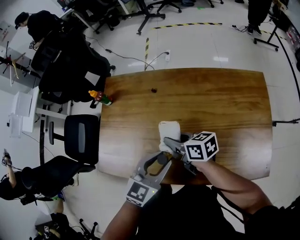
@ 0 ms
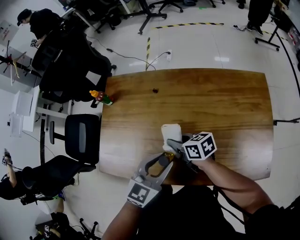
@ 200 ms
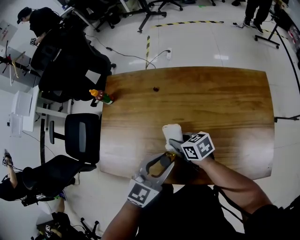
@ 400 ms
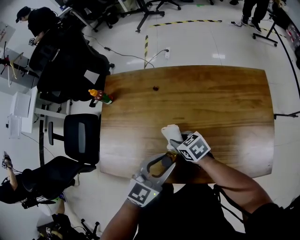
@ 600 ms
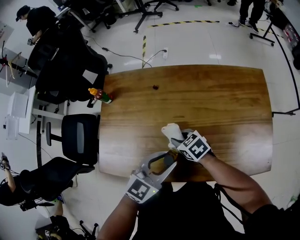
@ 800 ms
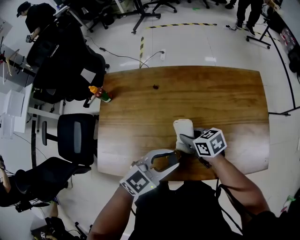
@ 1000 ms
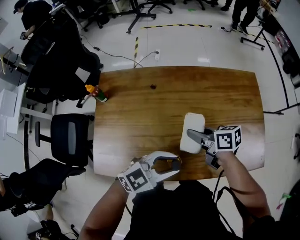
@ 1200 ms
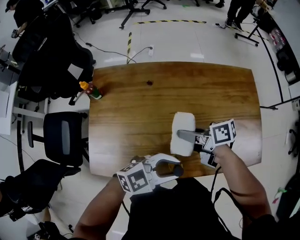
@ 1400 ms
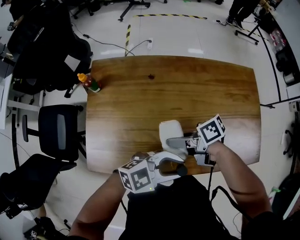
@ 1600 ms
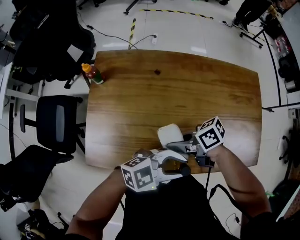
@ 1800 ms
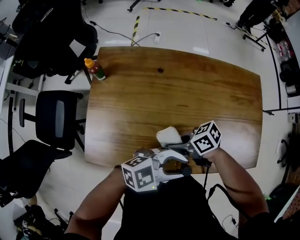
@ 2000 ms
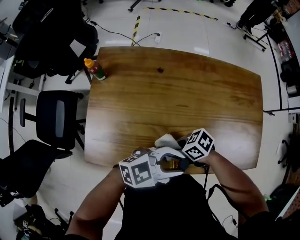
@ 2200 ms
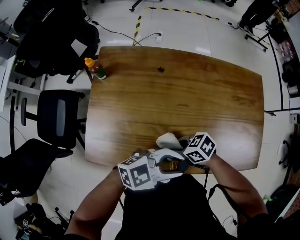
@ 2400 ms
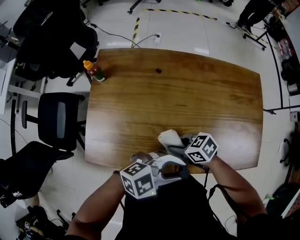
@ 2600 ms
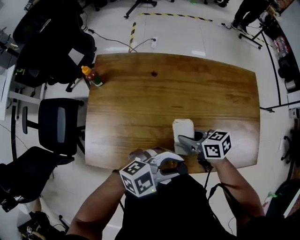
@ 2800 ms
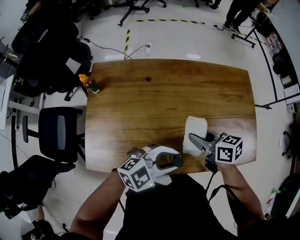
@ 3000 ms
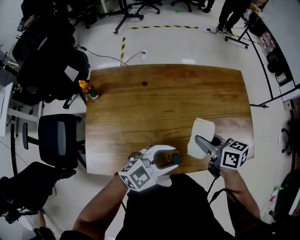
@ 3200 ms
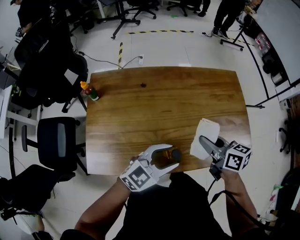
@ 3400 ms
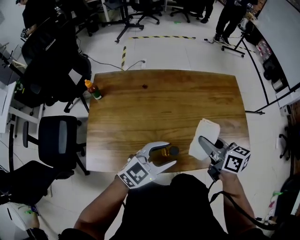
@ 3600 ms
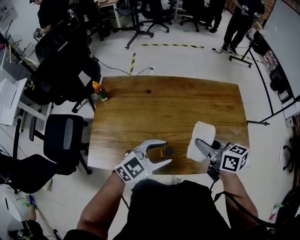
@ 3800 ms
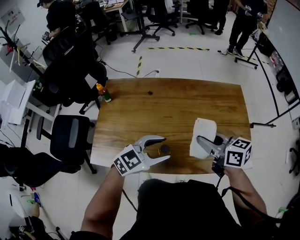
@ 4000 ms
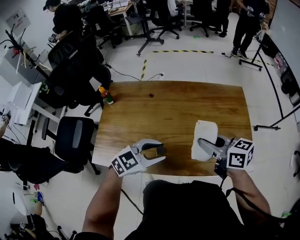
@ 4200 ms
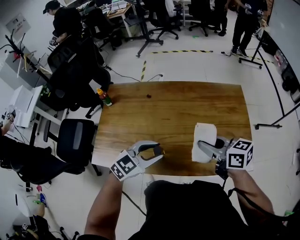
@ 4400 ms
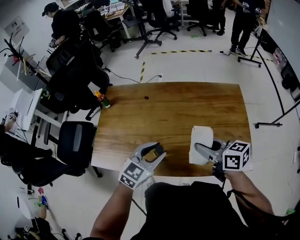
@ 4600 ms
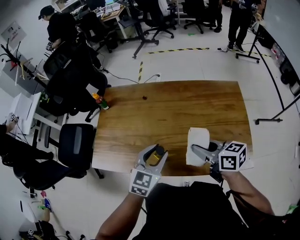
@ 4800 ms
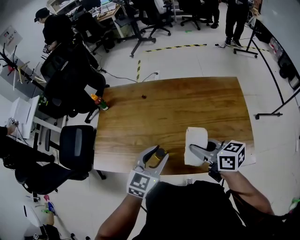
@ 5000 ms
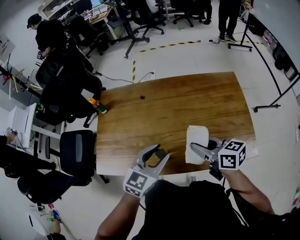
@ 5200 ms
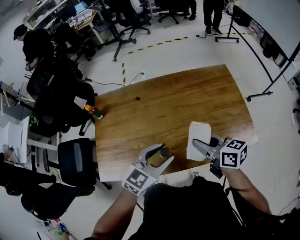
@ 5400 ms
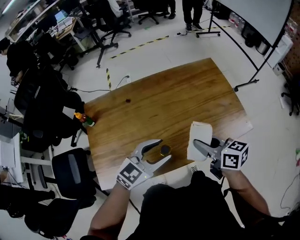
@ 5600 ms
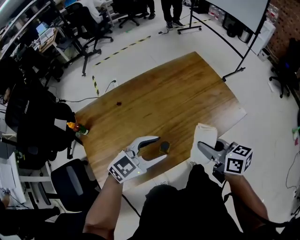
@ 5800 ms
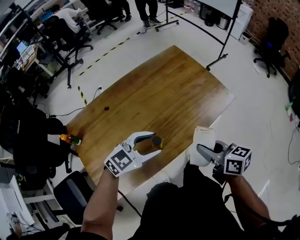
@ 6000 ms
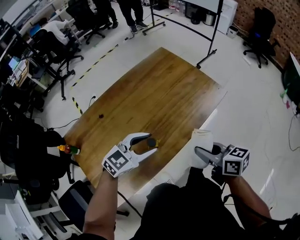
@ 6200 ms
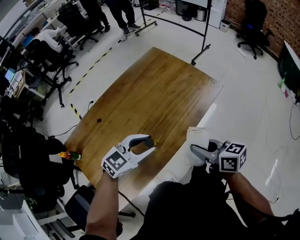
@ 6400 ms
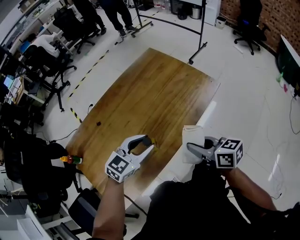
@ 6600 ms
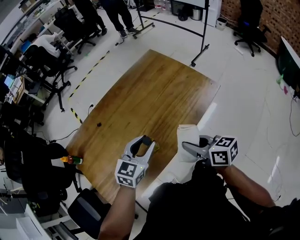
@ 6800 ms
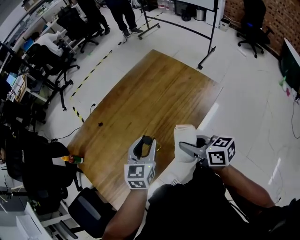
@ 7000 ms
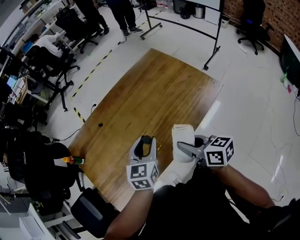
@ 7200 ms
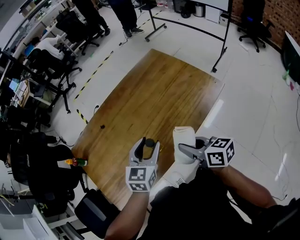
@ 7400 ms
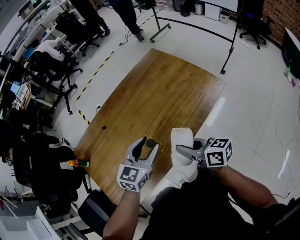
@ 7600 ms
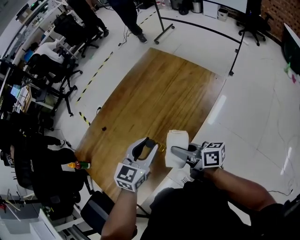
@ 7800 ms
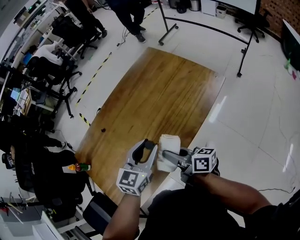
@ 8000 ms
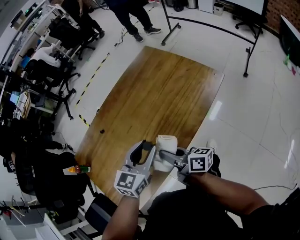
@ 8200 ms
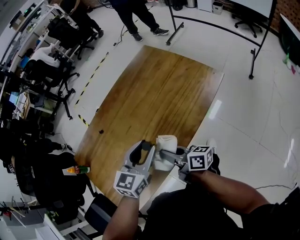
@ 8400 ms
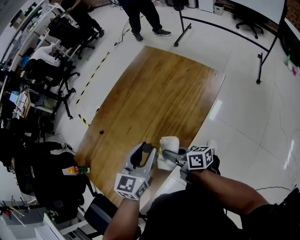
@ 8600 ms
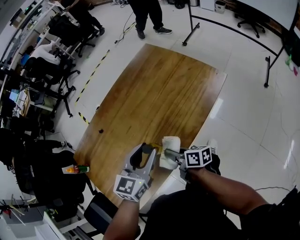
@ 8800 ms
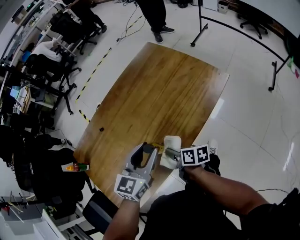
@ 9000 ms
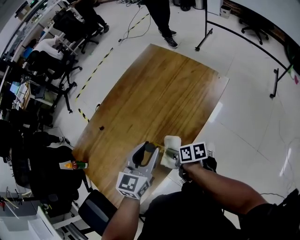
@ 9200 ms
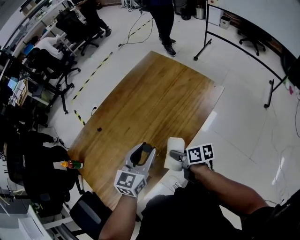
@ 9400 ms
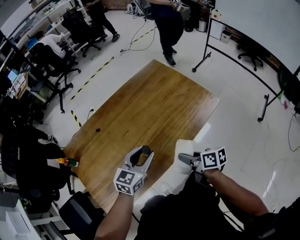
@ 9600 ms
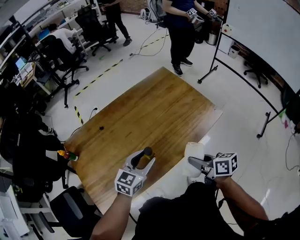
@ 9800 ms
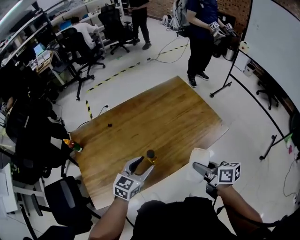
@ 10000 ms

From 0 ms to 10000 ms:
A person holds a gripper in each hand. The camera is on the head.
From 0 ms to 1400 ms: The right gripper moves roughly 10 cm downward and comes back, and rotates roughly 20 degrees; the left gripper changes place by some 10 cm, and turns by roughly 50 degrees.
From 1400 ms to 2800 ms: The right gripper is displaced downward by roughly 5 cm, and swivels roughly 30 degrees.
From 2800 ms to 4200 ms: The left gripper changes its angle by about 20 degrees. The right gripper heads upward, covering about 15 cm, and rotates roughly 20 degrees.
From 4200 ms to 5800 ms: The right gripper changes place by roughly 10 cm, and rotates roughly 40 degrees; the left gripper changes its angle by about 30 degrees.
From 5800 ms to 7200 ms: The left gripper shifts by about 5 cm, and turns by about 40 degrees.
From 7200 ms to 8600 ms: The right gripper shifts some 15 cm downward and to the left, and swivels some 30 degrees; the left gripper turns by approximately 20 degrees.
From 8600 ms to 10000 ms: The right gripper shifts some 20 cm to the right and upward, and turns by about 20 degrees.

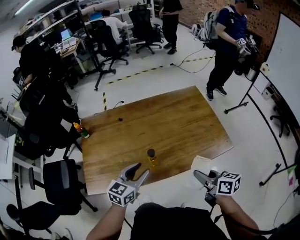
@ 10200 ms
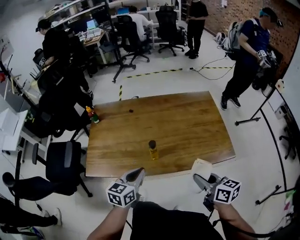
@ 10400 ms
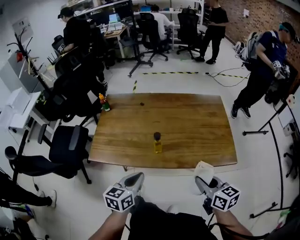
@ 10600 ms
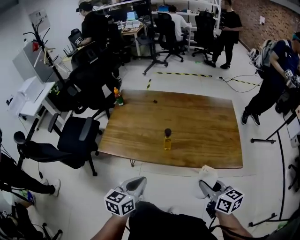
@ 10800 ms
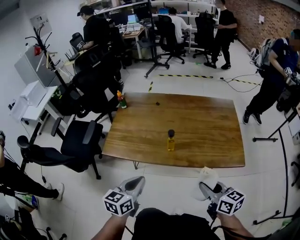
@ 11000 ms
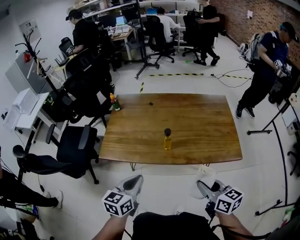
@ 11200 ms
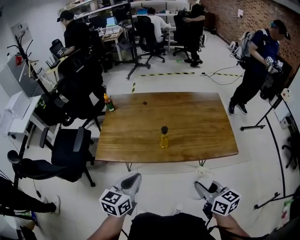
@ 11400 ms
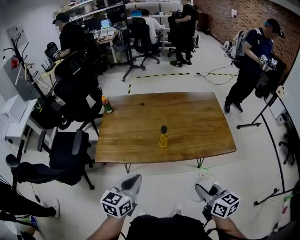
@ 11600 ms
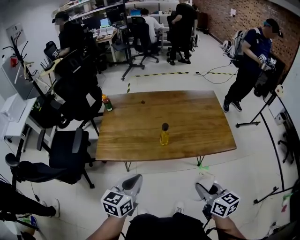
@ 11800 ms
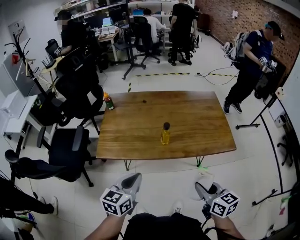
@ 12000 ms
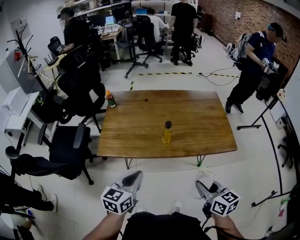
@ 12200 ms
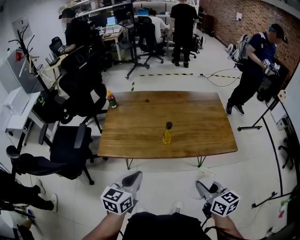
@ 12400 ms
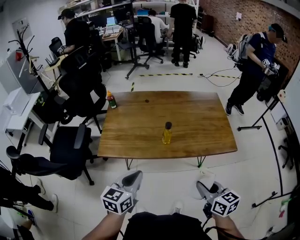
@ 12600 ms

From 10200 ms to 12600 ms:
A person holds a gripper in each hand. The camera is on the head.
From 10200 ms to 11400 ms: The right gripper heads backward and to the left, covering some 15 cm, and swivels roughly 20 degrees. The left gripper goes approximately 20 cm backward and to the left, turns by some 30 degrees, and closes.
From 11400 ms to 12600 ms: The grippers move only a little.

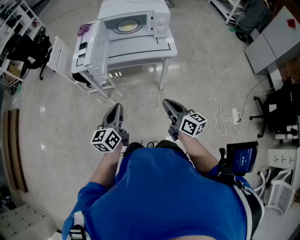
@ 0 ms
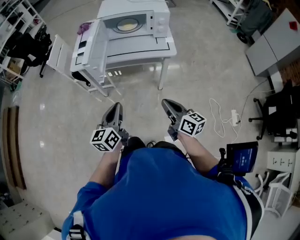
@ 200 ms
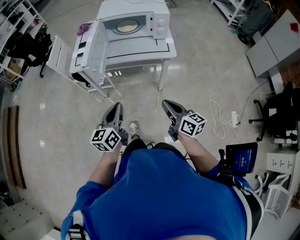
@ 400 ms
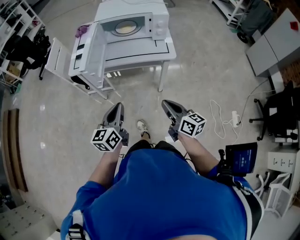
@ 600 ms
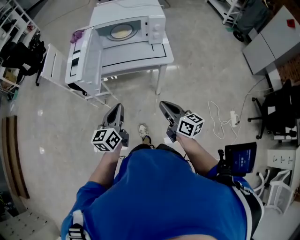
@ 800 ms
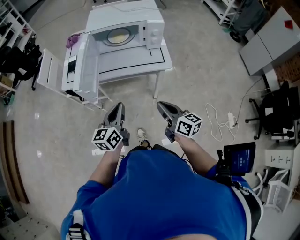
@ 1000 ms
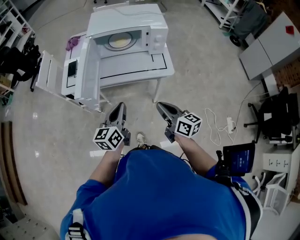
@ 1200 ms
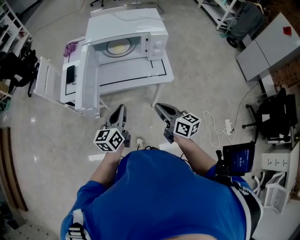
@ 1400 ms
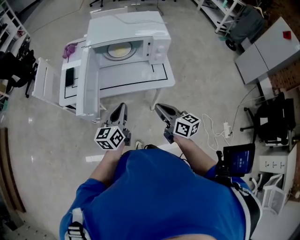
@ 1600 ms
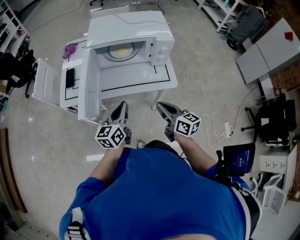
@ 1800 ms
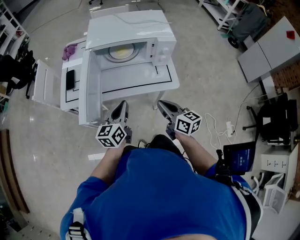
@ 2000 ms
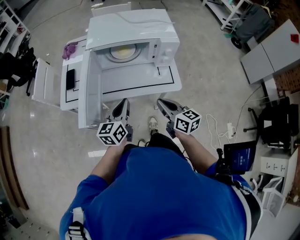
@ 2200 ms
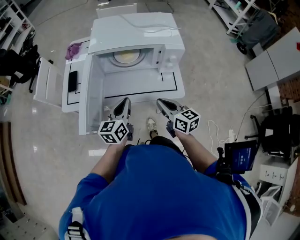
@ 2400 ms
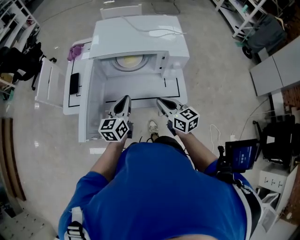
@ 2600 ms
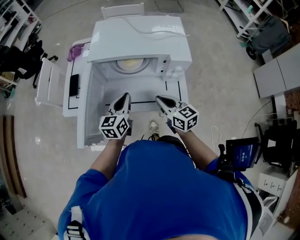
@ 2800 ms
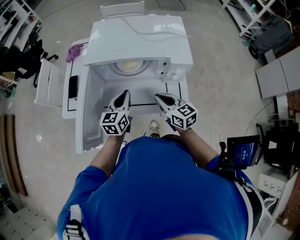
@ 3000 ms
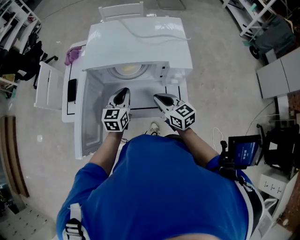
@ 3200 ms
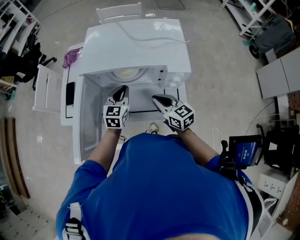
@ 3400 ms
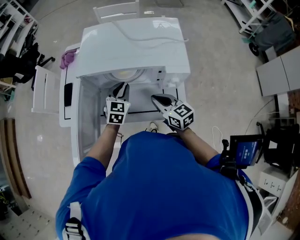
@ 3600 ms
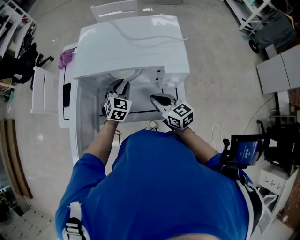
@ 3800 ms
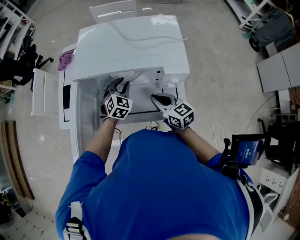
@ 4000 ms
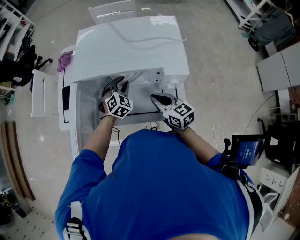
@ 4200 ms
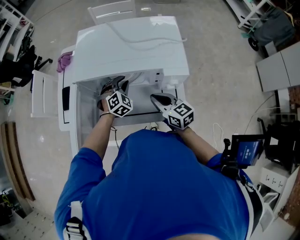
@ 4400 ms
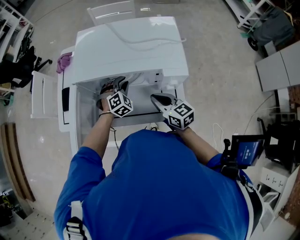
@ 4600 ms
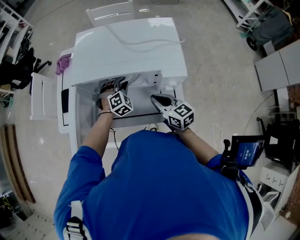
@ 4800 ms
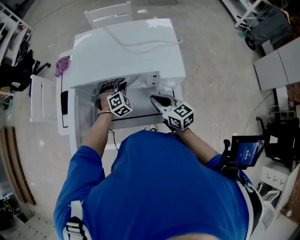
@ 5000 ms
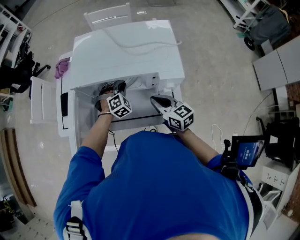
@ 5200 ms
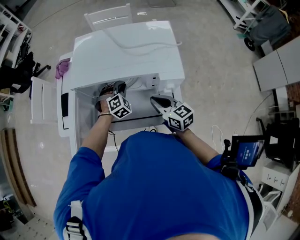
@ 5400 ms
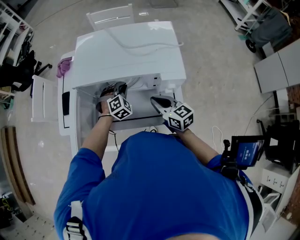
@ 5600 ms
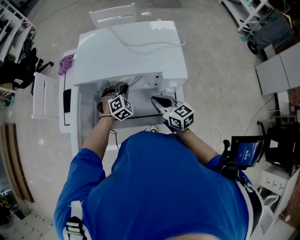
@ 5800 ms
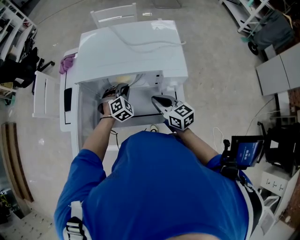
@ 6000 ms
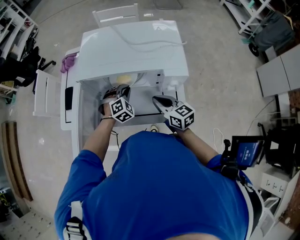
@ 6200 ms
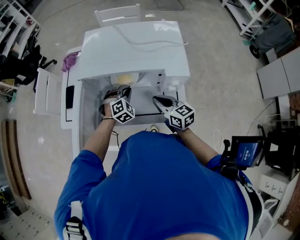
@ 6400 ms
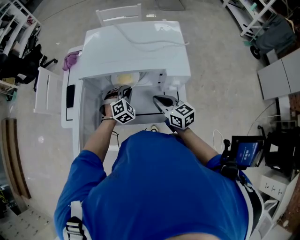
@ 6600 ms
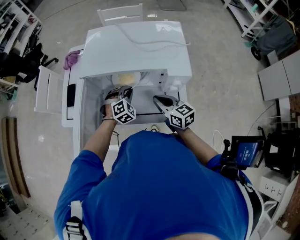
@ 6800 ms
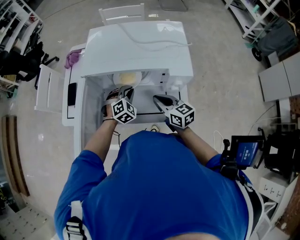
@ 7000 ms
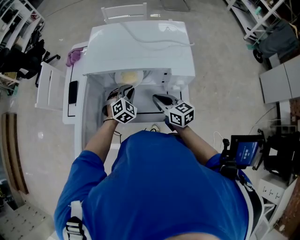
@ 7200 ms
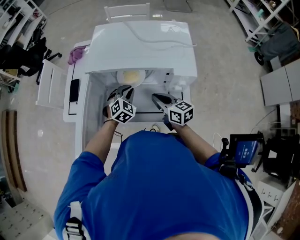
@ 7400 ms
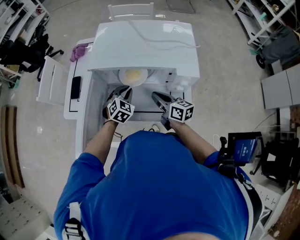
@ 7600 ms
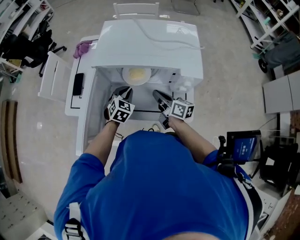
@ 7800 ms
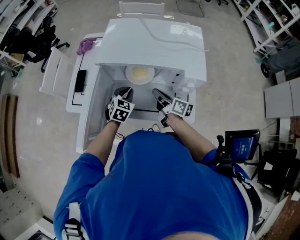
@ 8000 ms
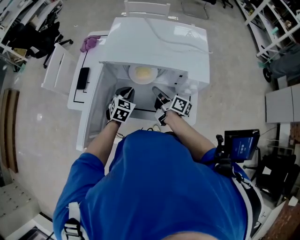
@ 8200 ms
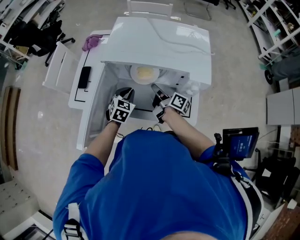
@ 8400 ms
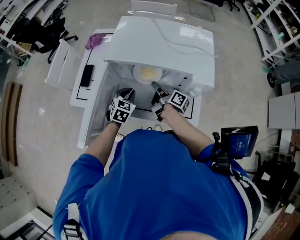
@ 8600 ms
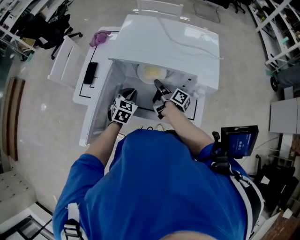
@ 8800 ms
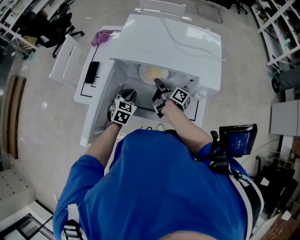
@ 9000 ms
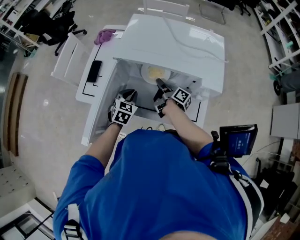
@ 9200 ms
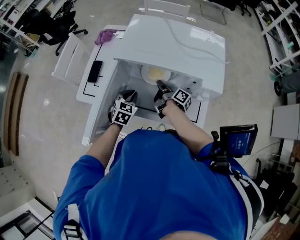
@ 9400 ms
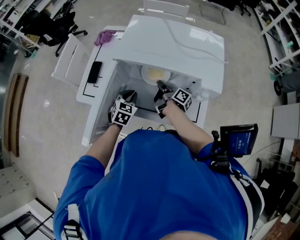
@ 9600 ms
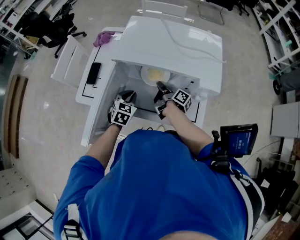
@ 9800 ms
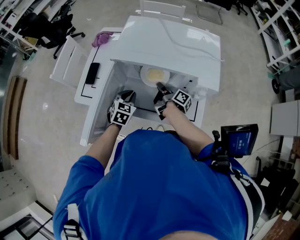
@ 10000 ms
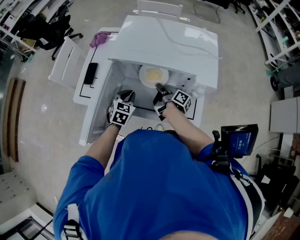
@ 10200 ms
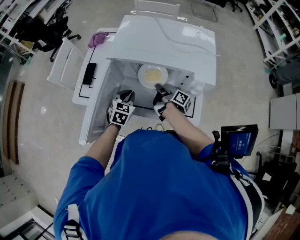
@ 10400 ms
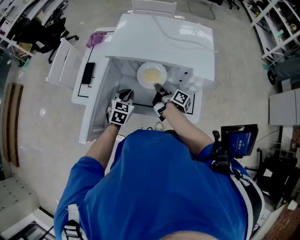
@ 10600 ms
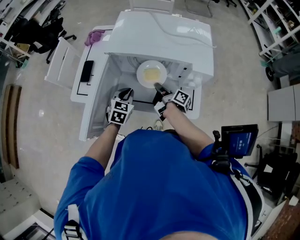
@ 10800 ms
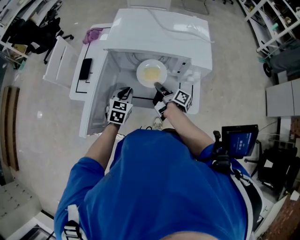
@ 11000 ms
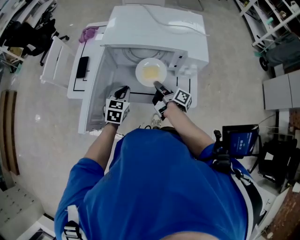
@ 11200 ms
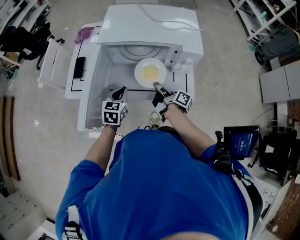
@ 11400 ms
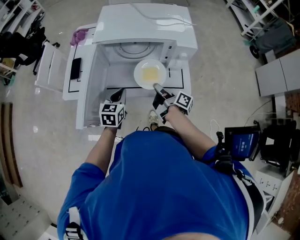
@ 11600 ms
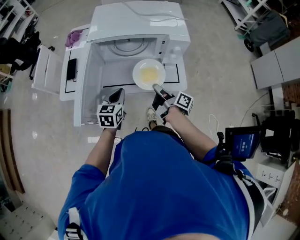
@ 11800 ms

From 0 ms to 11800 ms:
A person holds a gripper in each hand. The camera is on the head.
From 0 ms to 1400 ms: The two grippers go approximately 20 cm forward.
From 1400 ms to 3000 ms: Both grippers move forward, roughly 25 cm. The right gripper rotates about 20 degrees.
From 3000 ms to 4400 ms: The right gripper ends up some 5 cm from where it was. Meanwhile the left gripper shifts approximately 15 cm forward, downward and to the right, and rotates around the line of its fingers by roughly 60 degrees, clockwise from behind.
From 4400 ms to 7400 ms: The grippers make only small movements.
From 7400 ms to 8800 ms: The left gripper moves to the left, some 10 cm, and changes its angle by some 30 degrees. The right gripper is displaced forward by about 10 cm, twists approximately 60 degrees clockwise, seen from behind, and opens its fingers.
From 8800 ms to 10400 ms: The right gripper closes.
From 10400 ms to 11800 ms: The grippers both shift backward by about 15 cm. The left gripper changes its angle by roughly 20 degrees.
